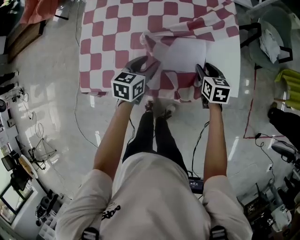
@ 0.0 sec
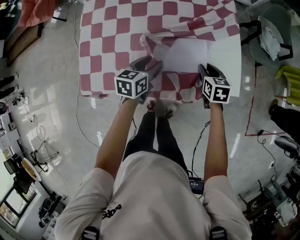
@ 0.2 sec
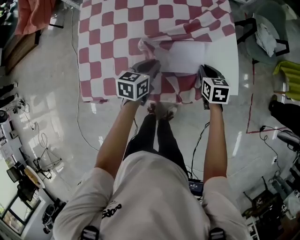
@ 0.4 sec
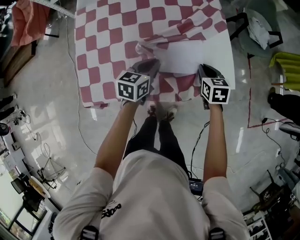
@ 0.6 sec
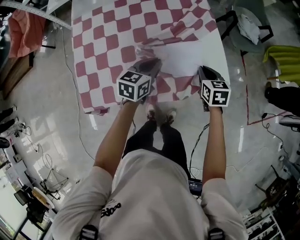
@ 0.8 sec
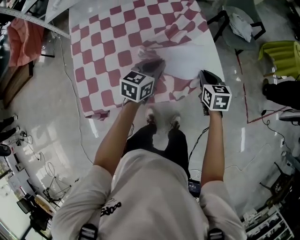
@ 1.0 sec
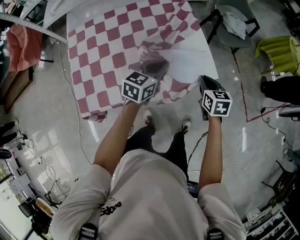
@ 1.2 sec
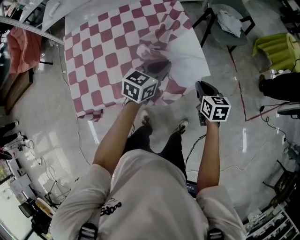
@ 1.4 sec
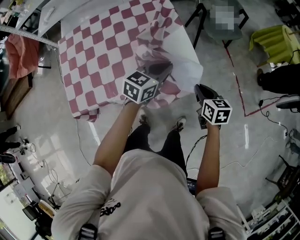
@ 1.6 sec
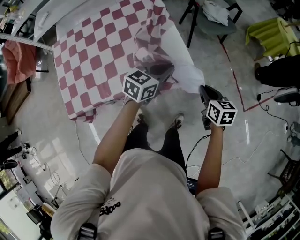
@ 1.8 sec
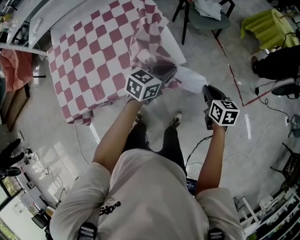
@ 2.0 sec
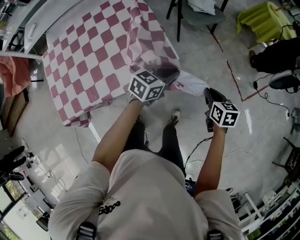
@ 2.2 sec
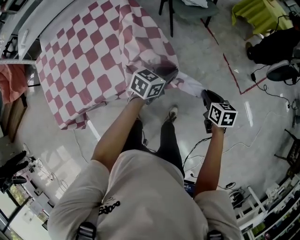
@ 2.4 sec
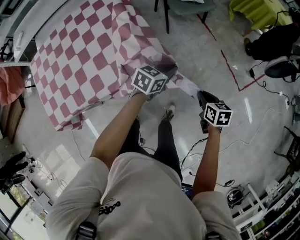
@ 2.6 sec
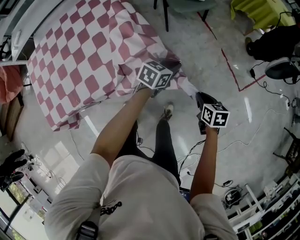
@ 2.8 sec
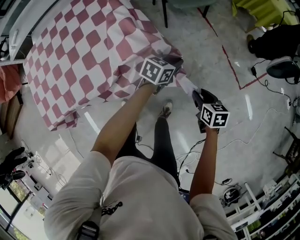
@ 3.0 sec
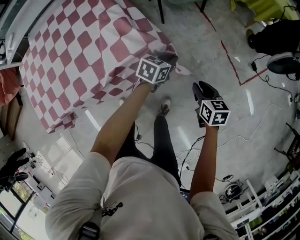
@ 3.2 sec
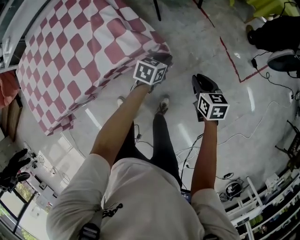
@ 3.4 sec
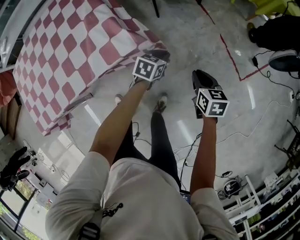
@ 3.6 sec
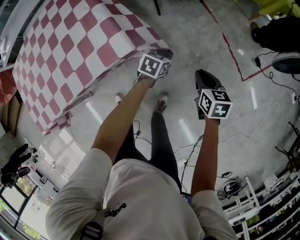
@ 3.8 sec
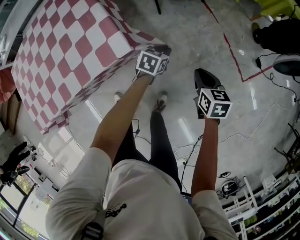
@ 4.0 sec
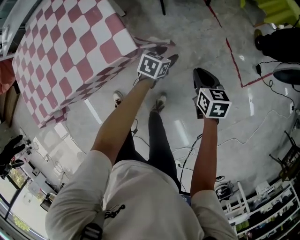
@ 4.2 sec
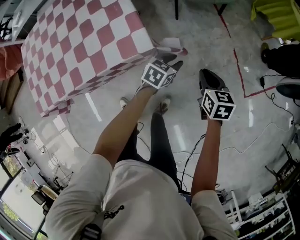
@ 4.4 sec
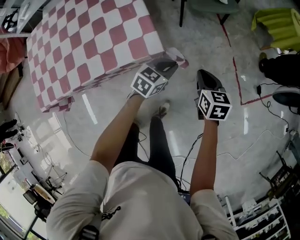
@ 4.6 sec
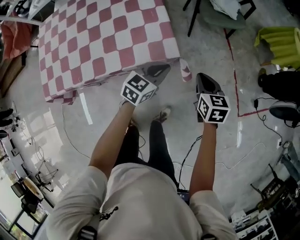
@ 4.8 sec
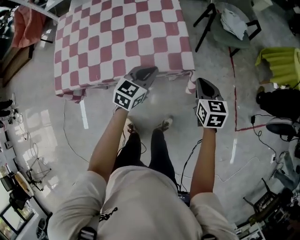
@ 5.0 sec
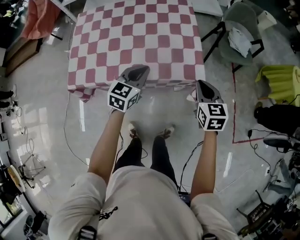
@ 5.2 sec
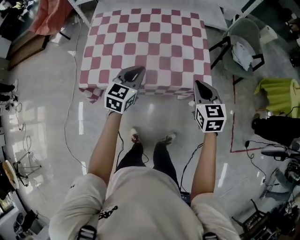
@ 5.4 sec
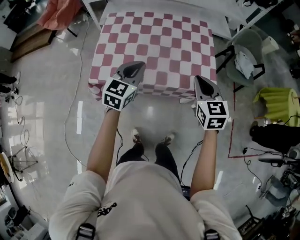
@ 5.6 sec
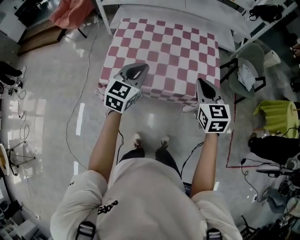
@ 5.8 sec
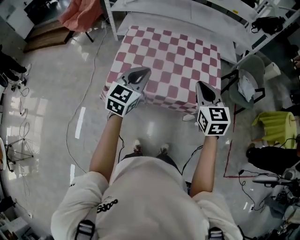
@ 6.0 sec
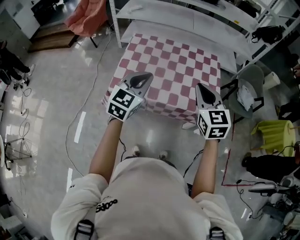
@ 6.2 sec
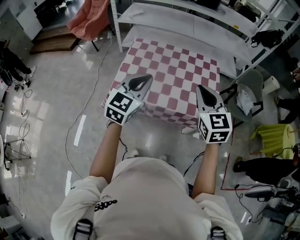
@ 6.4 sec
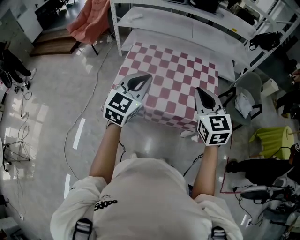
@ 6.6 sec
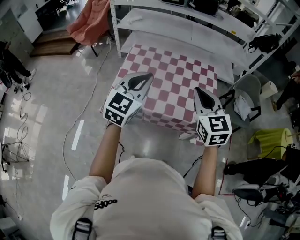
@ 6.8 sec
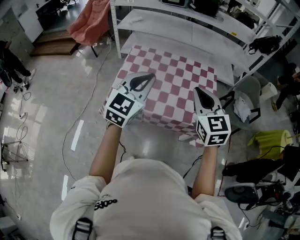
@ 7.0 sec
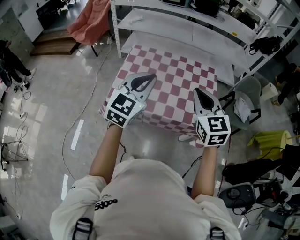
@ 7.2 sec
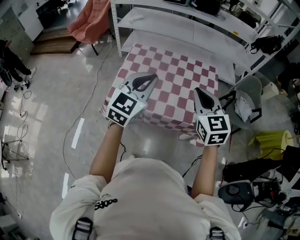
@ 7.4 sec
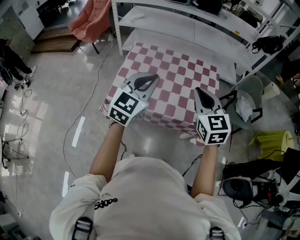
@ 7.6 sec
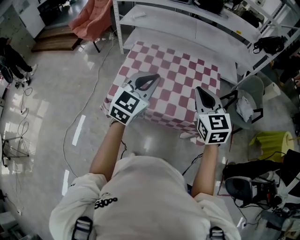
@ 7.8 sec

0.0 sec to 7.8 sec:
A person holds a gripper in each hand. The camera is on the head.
0.0 sec to 1.6 sec: The right gripper goes about 25 cm to the right, backward and upward, and closes up. The left gripper heads to the right and upward, covering about 30 cm, changes its angle by some 40 degrees, and closes up.
1.6 sec to 3.2 sec: The two grippers go roughly 30 cm to the right and downward. The right gripper opens its fingers. The left gripper changes its angle by some 20 degrees.
3.2 sec to 4.6 sec: The right gripper goes about 10 cm forward and to the left; the left gripper moves roughly 10 cm downward and comes back, and opens, then closes once more.
4.6 sec to 6.2 sec: The left gripper moves about 60 cm, and swivels about 50 degrees, while the right gripper ends up roughly 50 cm from where it was, and turns by about 50 degrees.
6.2 sec to 7.8 sec: The left gripper moves upward, roughly 5 cm.

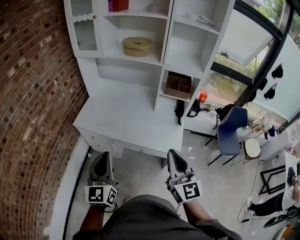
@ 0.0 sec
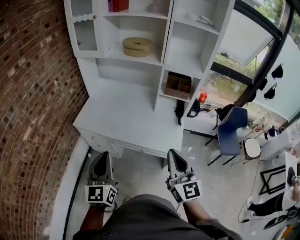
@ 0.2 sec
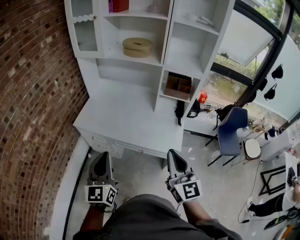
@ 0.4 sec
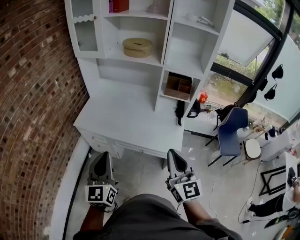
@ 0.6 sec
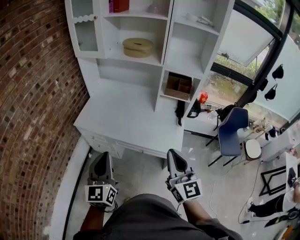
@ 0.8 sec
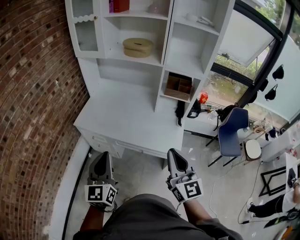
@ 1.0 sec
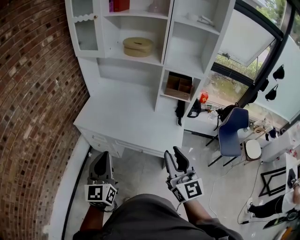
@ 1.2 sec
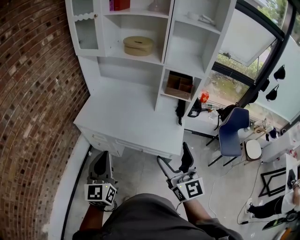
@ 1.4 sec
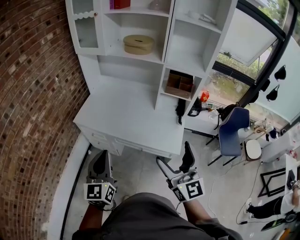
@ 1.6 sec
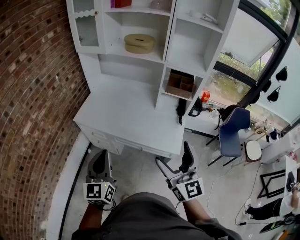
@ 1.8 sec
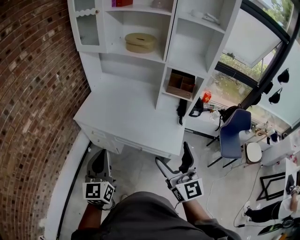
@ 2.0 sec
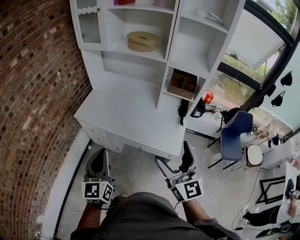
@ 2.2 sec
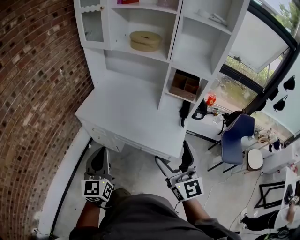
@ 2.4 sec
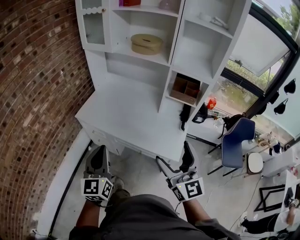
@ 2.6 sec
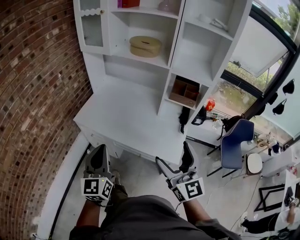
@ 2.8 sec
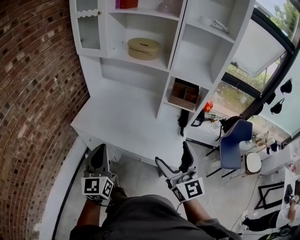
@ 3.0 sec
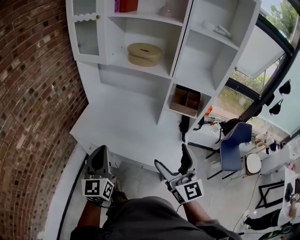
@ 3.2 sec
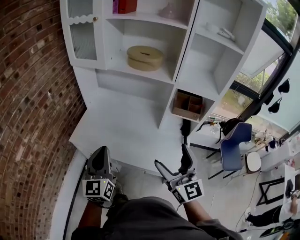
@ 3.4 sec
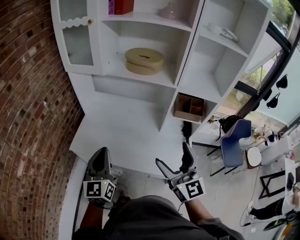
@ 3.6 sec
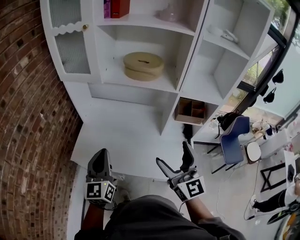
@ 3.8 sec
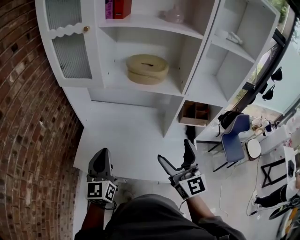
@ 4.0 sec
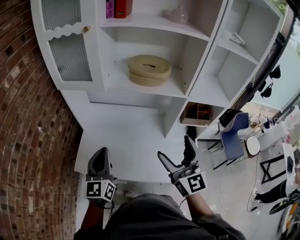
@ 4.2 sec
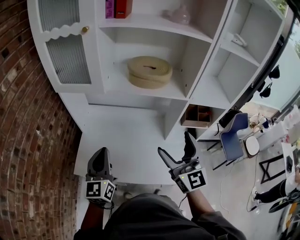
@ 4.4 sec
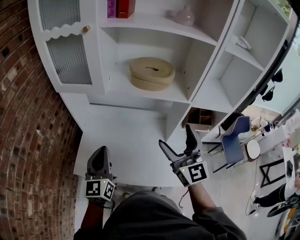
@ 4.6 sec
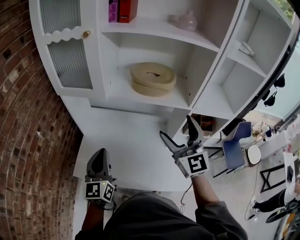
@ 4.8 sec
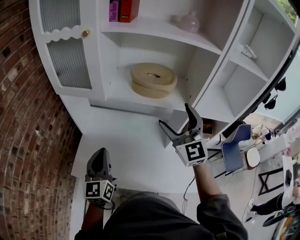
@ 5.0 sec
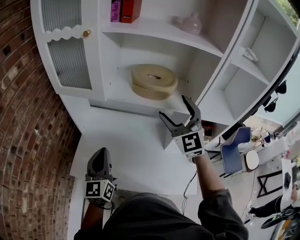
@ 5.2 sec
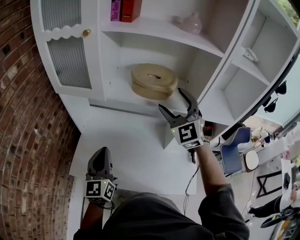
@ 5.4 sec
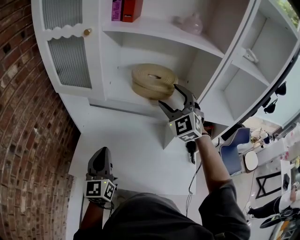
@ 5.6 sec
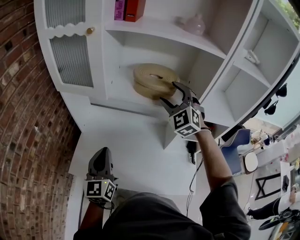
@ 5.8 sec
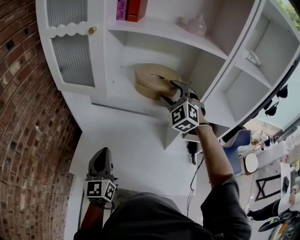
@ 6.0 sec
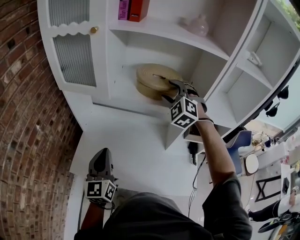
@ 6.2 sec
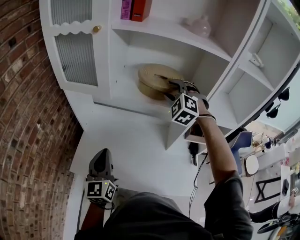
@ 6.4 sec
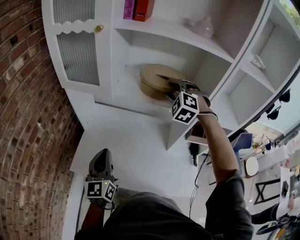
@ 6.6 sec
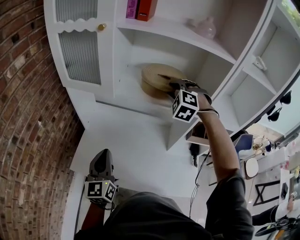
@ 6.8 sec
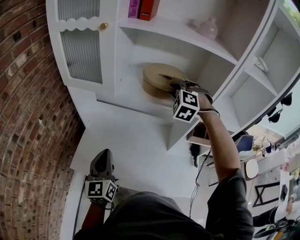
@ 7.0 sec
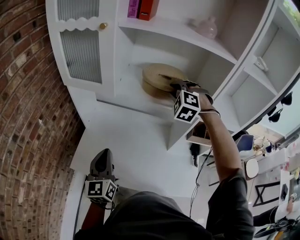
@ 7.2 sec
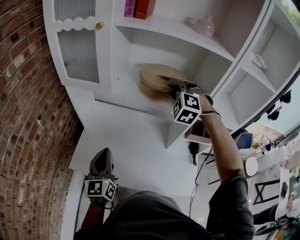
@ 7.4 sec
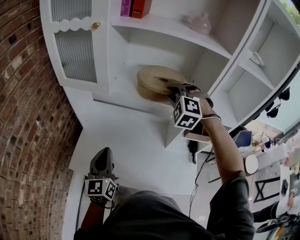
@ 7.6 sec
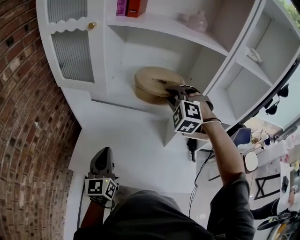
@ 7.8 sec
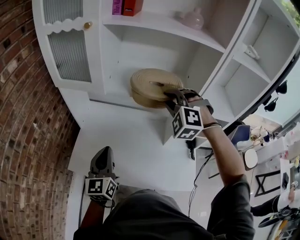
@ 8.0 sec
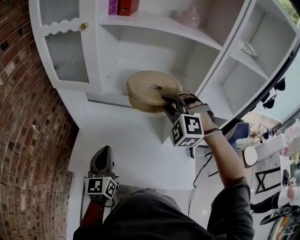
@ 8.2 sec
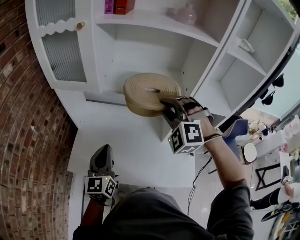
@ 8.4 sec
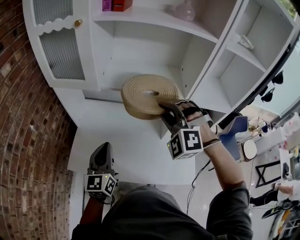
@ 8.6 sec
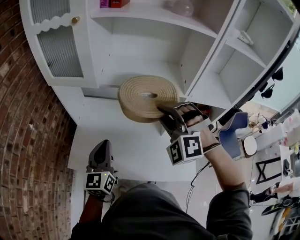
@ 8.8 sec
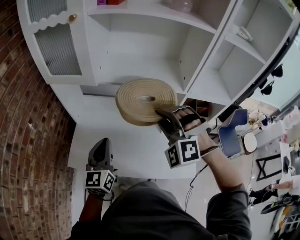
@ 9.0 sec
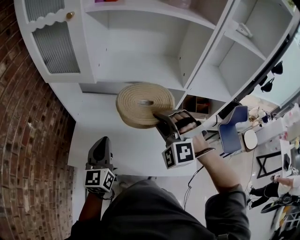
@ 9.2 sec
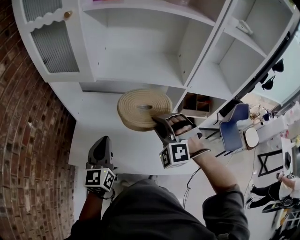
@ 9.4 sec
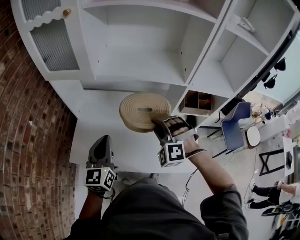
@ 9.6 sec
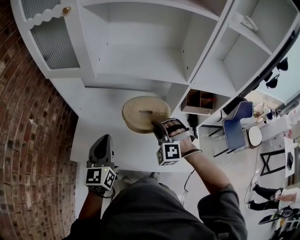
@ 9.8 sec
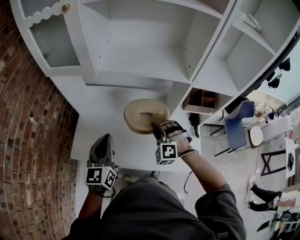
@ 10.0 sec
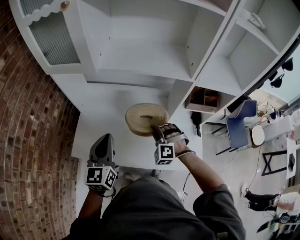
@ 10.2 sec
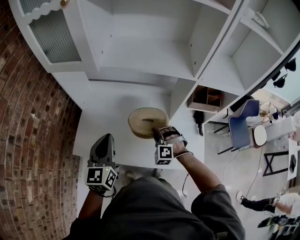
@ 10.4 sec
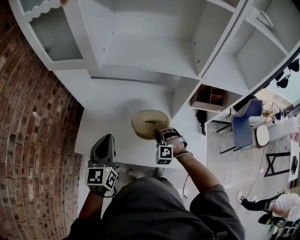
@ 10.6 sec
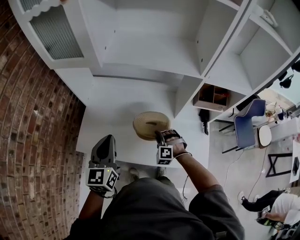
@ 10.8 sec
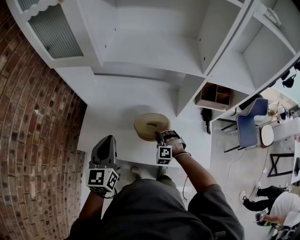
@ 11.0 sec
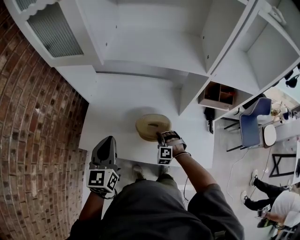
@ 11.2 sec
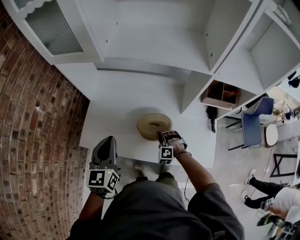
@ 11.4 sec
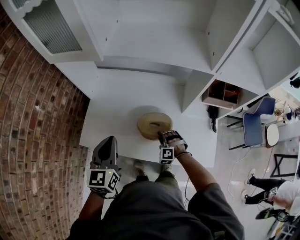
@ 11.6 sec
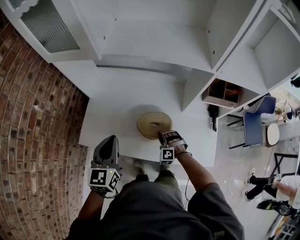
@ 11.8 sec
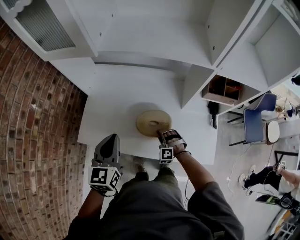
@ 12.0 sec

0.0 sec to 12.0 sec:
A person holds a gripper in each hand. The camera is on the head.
0.0 sec to 1.6 sec: The right gripper opens.
1.6 sec to 3.0 sec: The grippers both shift forward by approximately 10 cm.
3.0 sec to 4.4 sec: The left gripper moves forward, about 30 cm, while the right gripper moves forward and to the left, approximately 30 cm.
4.4 sec to 6.0 sec: The right gripper shifts approximately 25 cm forward, rolls counterclockwise, seen from behind, by roughly 50 degrees, and closes.
6.0 sec to 7.6 sec: The right gripper turns by roughly 20 degrees, and closes up.
7.6 sec to 9.0 sec: The right gripper moves backward, approximately 15 cm.
9.0 sec to 10.4 sec: The right gripper shifts approximately 30 cm downward.
10.4 sec to 12.0 sec: The left gripper heads downward, covering approximately 5 cm; the right gripper moves downward, approximately 20 cm.

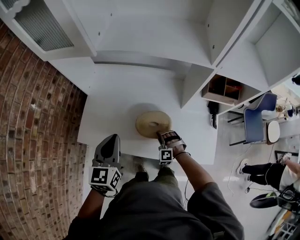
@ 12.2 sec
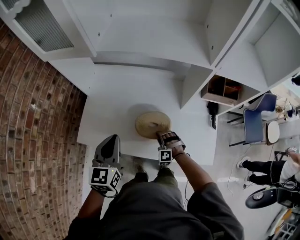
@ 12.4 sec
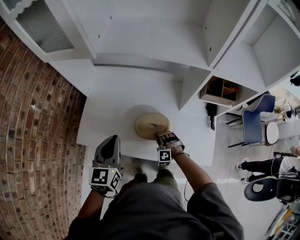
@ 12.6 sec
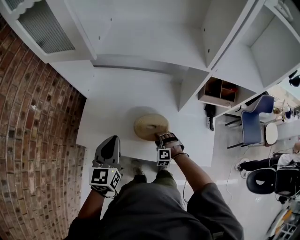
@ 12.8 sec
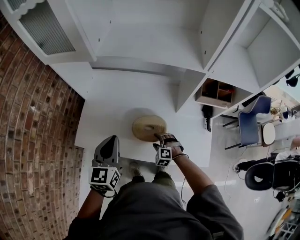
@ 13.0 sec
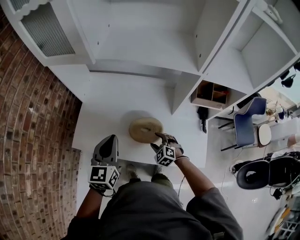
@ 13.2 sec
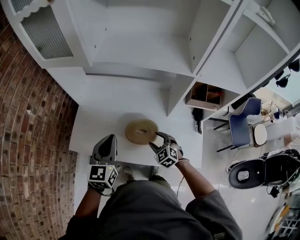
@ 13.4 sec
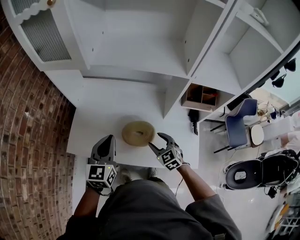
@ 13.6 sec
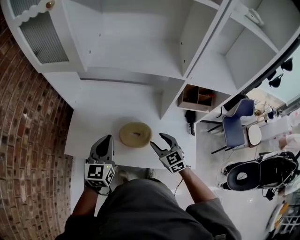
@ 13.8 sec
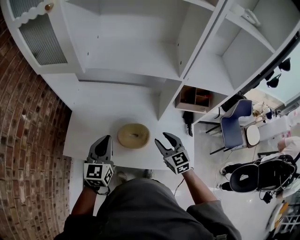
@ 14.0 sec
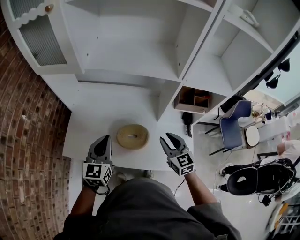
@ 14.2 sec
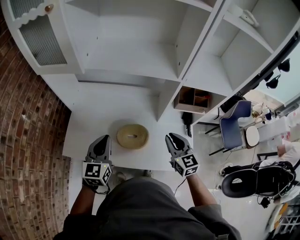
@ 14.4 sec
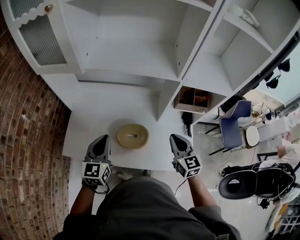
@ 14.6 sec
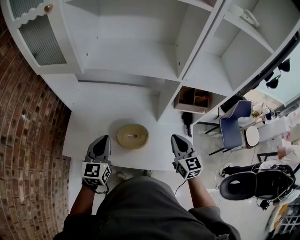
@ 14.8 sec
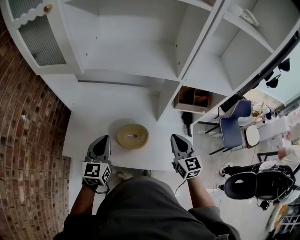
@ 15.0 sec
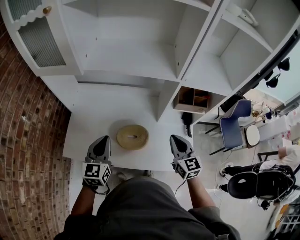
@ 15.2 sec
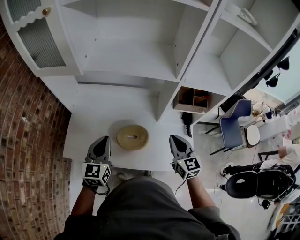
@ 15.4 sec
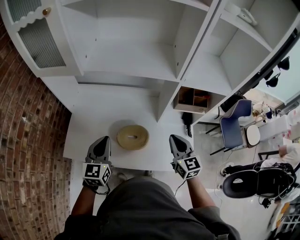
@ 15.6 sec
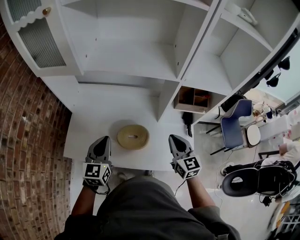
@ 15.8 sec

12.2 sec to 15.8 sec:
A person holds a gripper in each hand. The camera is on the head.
12.2 sec to 14.0 sec: The right gripper travels upward by approximately 25 cm, and rolls clockwise, seen from behind, by some 70 degrees.
14.0 sec to 15.8 sec: The right gripper goes some 5 cm upward and to the right, and closes up.
